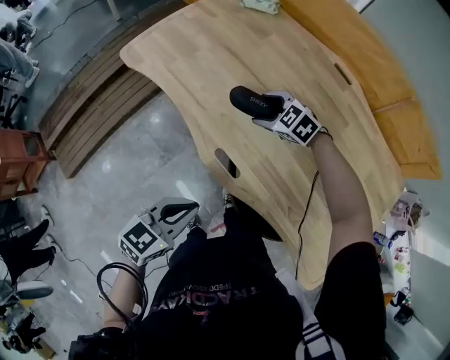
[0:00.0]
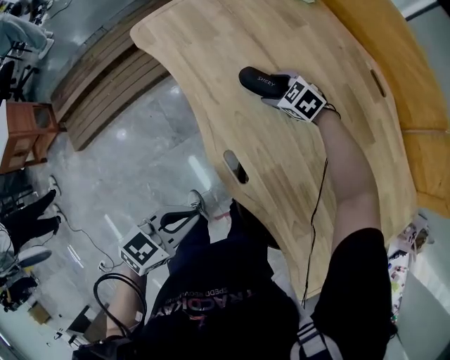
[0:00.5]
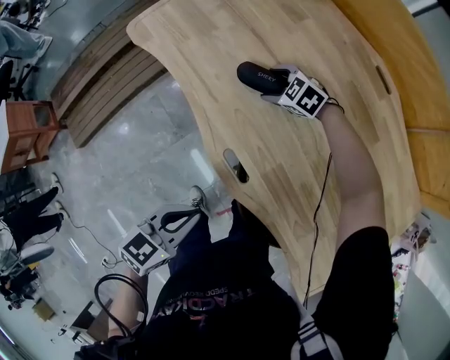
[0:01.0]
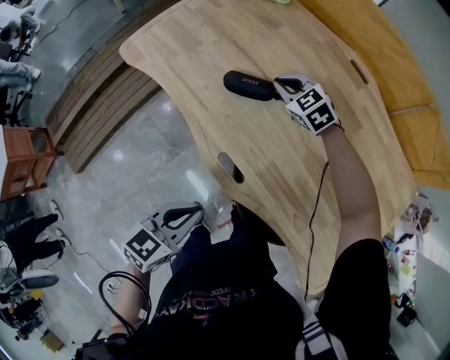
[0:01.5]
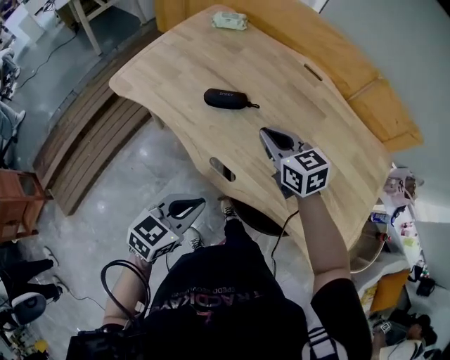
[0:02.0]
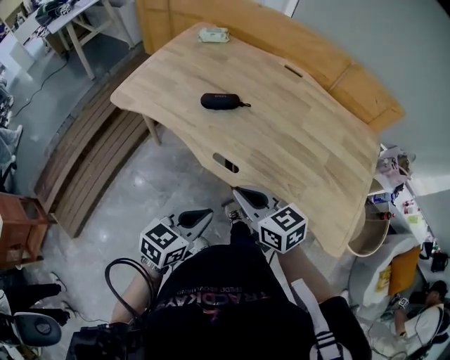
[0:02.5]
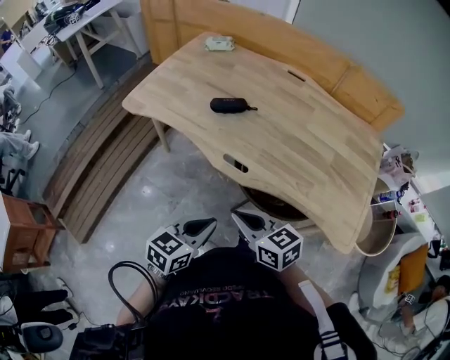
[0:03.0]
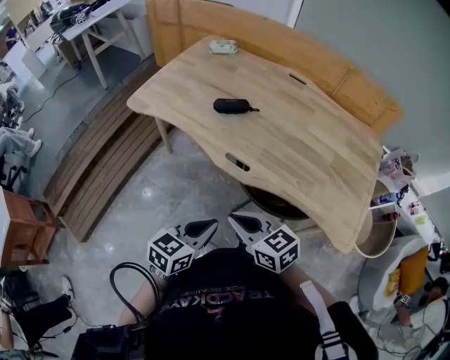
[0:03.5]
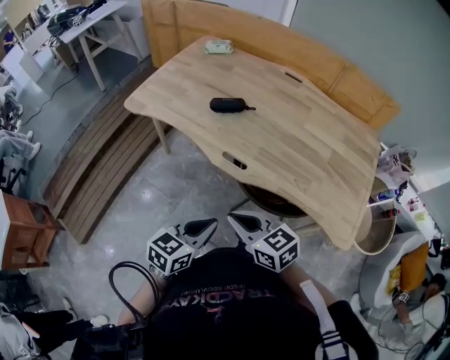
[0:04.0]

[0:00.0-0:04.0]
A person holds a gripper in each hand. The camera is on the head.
0:00.0 to 0:02.0: The right gripper goes roughly 15 cm upward, swivels about 50 degrees, and closes.
0:02.0 to 0:04.0: The left gripper heads backward, covering some 15 cm, while the right gripper shifts some 35 cm backward.

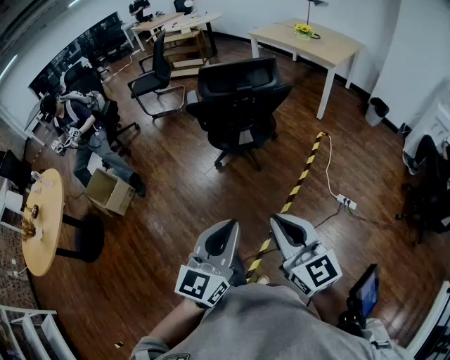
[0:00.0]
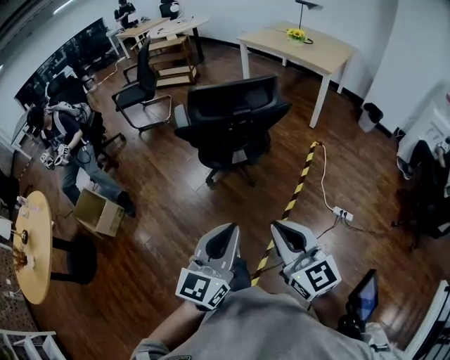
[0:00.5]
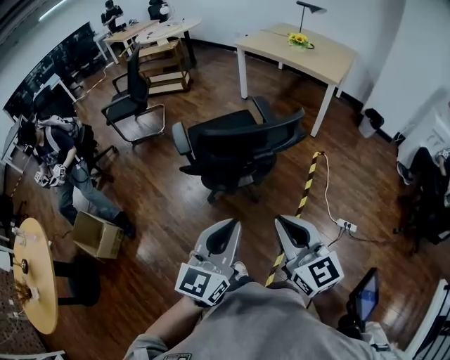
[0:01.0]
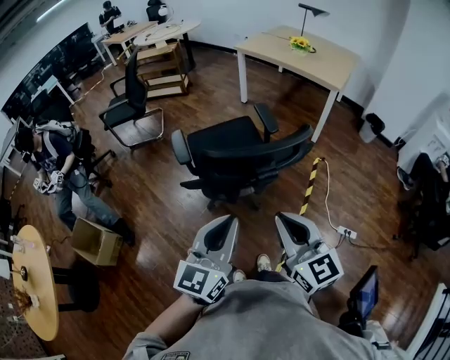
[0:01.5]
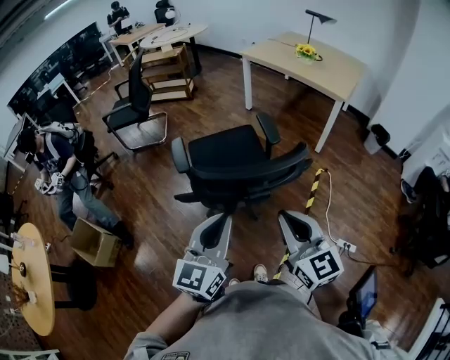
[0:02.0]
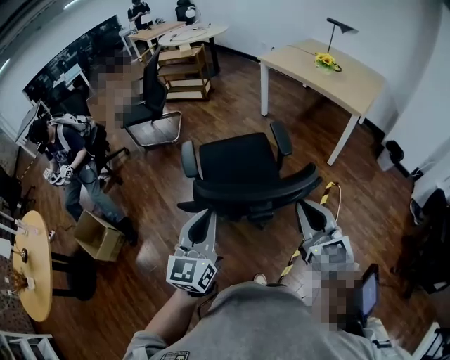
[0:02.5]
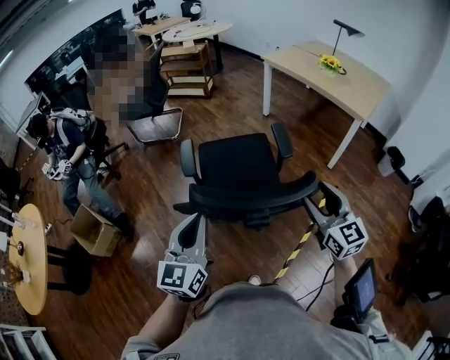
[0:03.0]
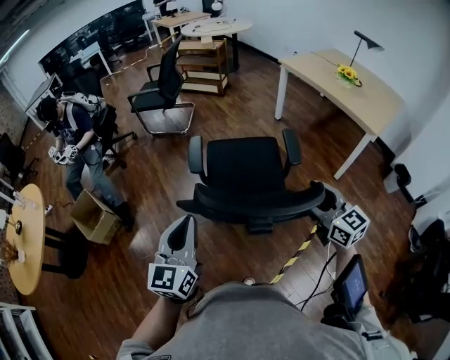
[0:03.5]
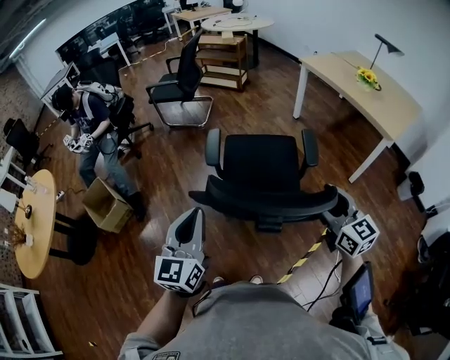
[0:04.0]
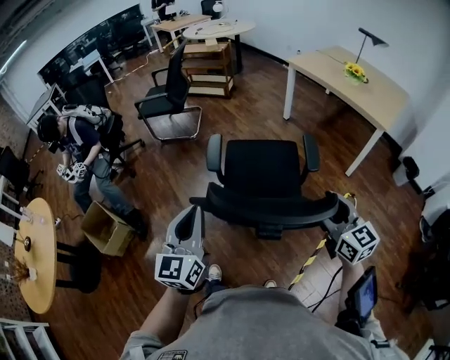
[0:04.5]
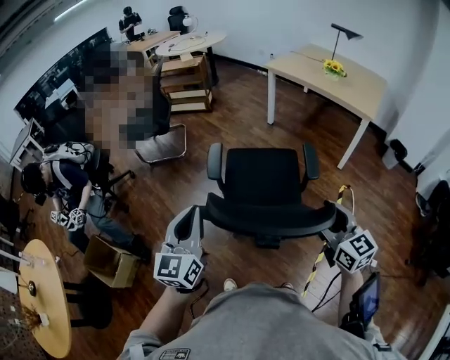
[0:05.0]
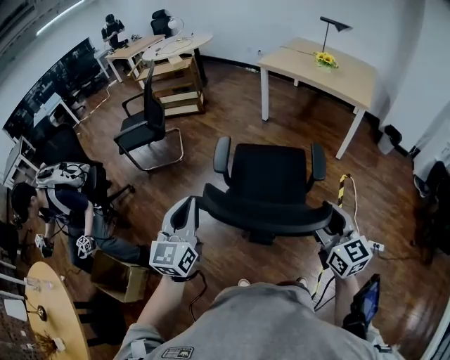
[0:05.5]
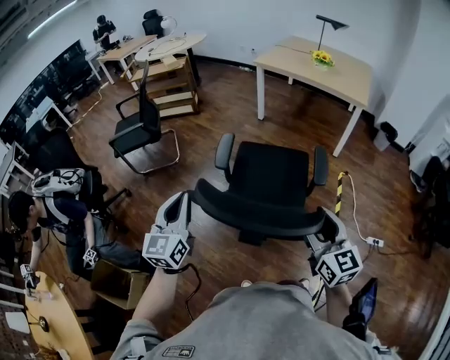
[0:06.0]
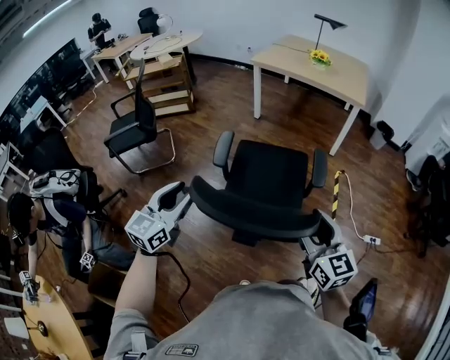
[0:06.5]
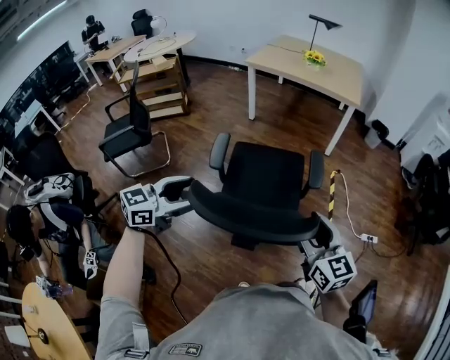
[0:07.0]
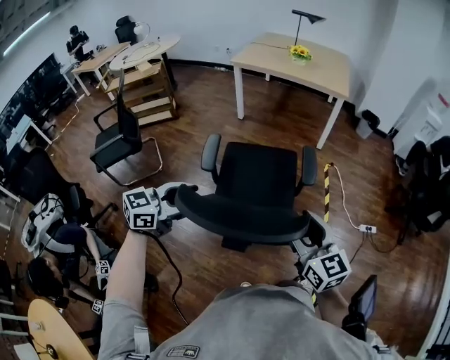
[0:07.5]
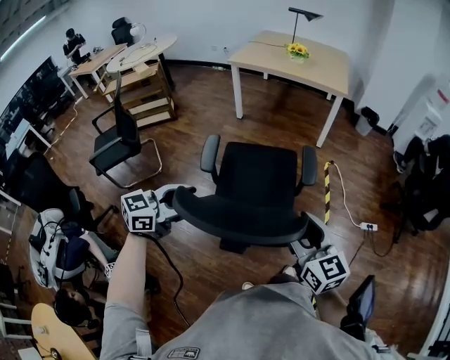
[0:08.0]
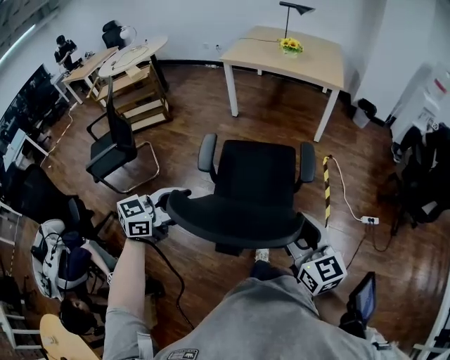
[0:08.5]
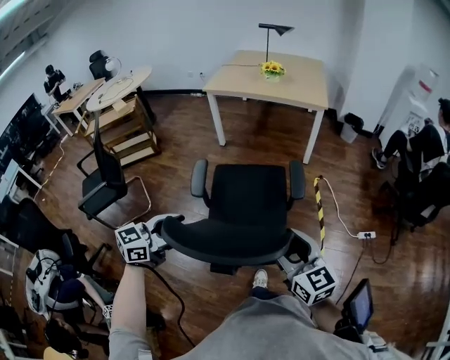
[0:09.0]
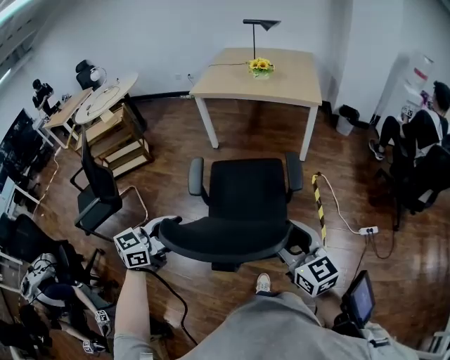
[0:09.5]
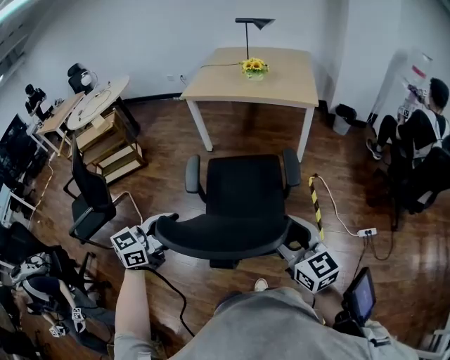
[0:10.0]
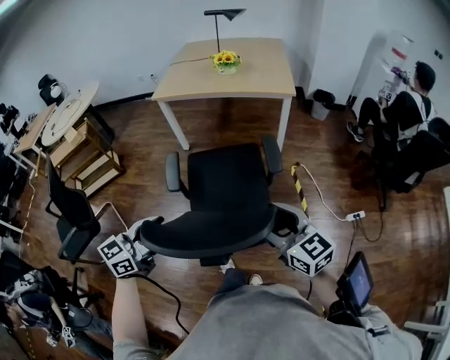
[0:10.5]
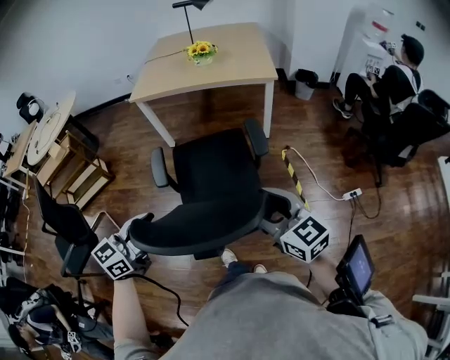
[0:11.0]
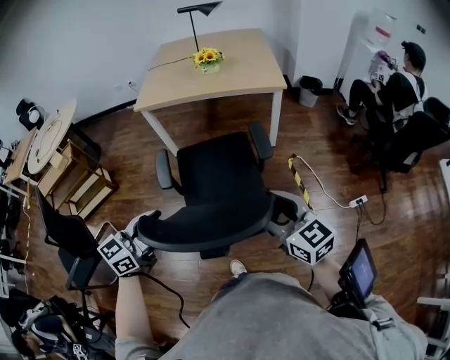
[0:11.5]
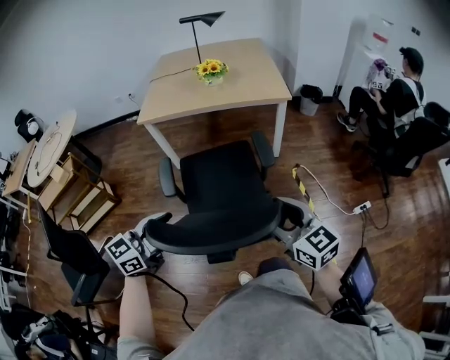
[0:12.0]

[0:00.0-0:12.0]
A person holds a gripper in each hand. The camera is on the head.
0:00.0 to 0:02.0: Both grippers travel together forward, approximately 40 cm.
0:02.0 to 0:04.0: The right gripper shifts roughly 20 cm forward and to the right, and opens. The left gripper shifts approximately 10 cm to the left and forward, and swivels about 30 degrees.
0:04.0 to 0:06.0: The right gripper ends up roughly 25 cm from where it was, and turns by approximately 40 degrees. The left gripper shifts by about 30 cm, and swivels roughly 30 degrees.
0:06.0 to 0:08.0: The left gripper moves roughly 10 cm, turns by some 60 degrees, and opens.
0:08.0 to 0:10.0: The grippers both shift forward by about 20 cm.
0:10.0 to 0:12.0: The right gripper heads forward and to the left, covering approximately 15 cm. The left gripper travels forward by some 20 cm.

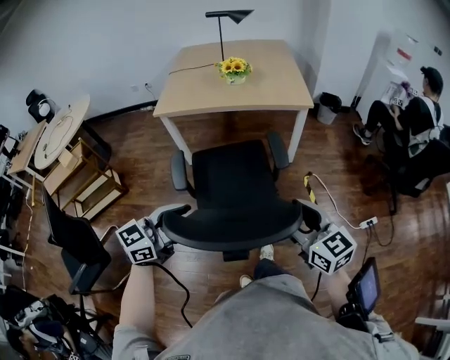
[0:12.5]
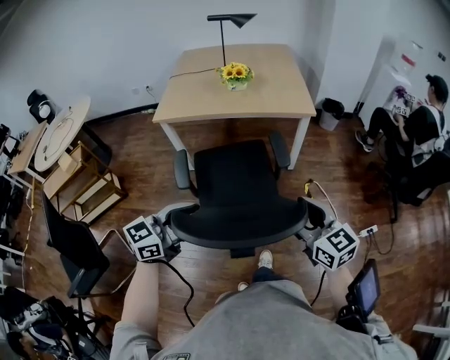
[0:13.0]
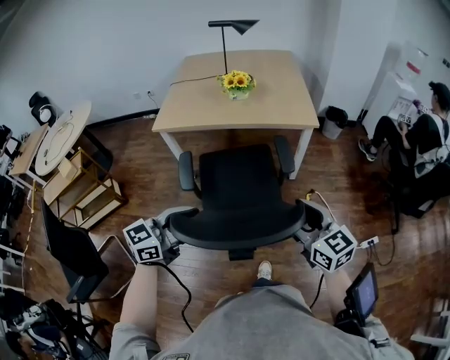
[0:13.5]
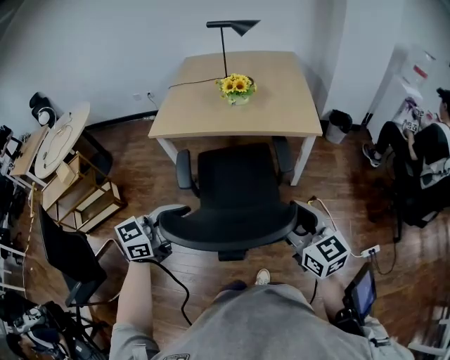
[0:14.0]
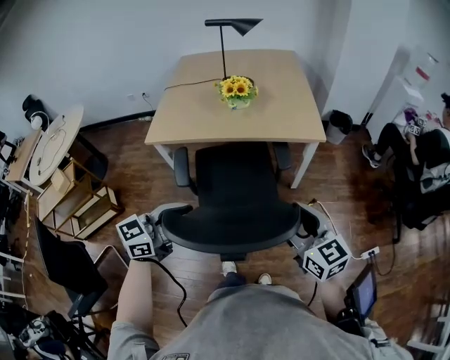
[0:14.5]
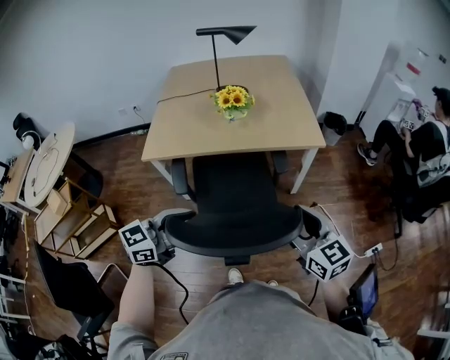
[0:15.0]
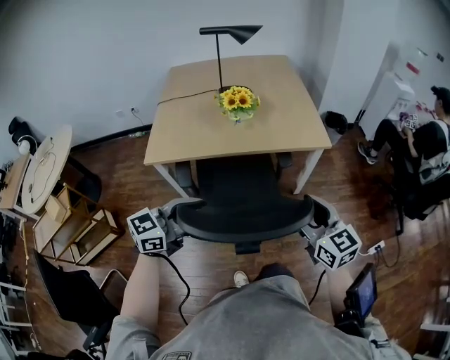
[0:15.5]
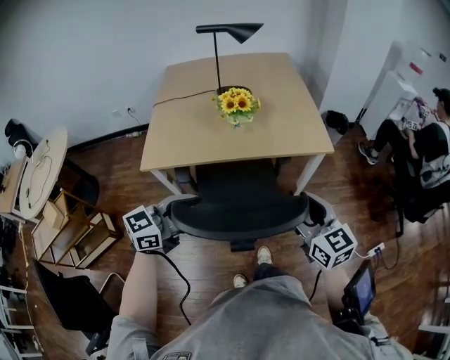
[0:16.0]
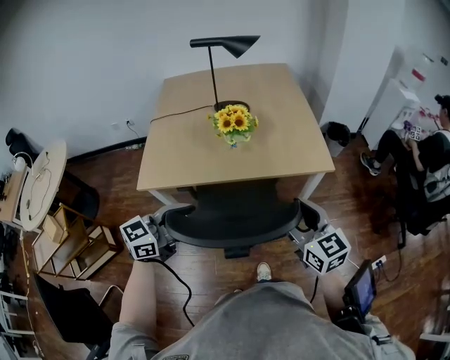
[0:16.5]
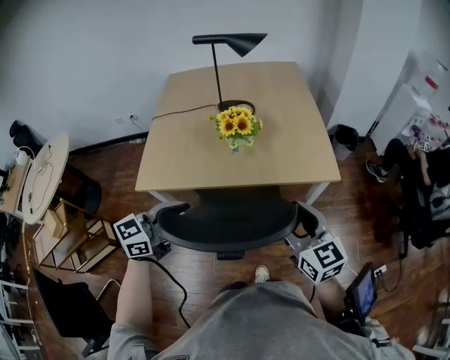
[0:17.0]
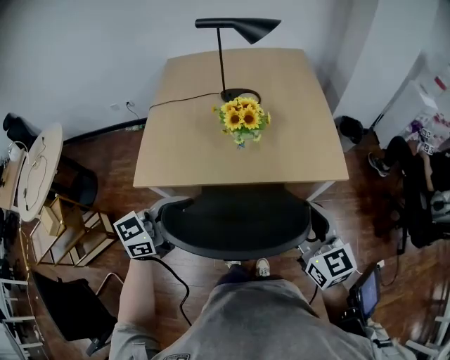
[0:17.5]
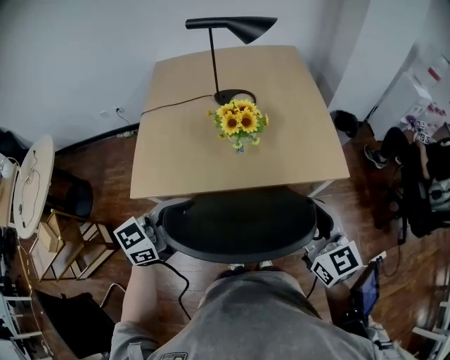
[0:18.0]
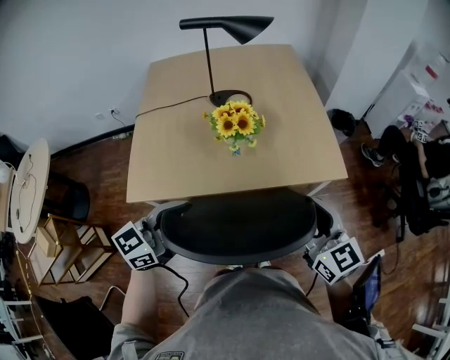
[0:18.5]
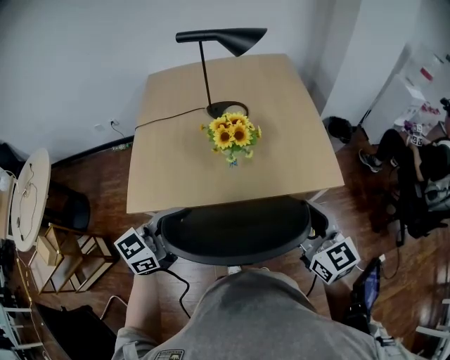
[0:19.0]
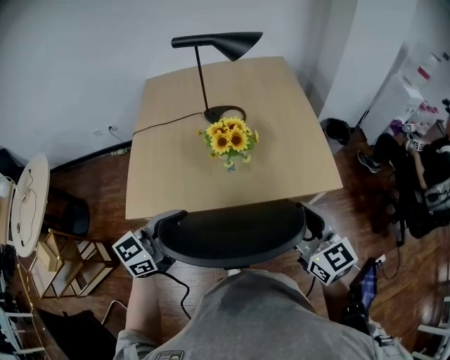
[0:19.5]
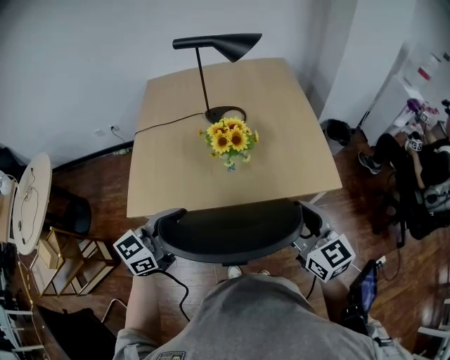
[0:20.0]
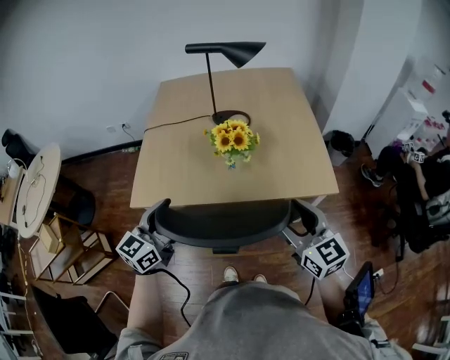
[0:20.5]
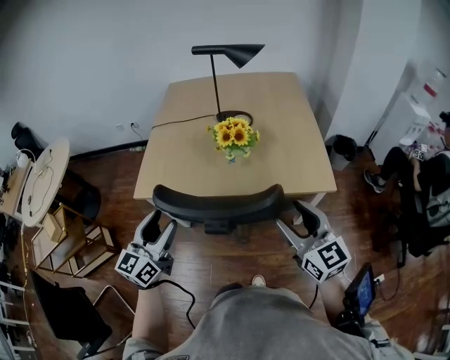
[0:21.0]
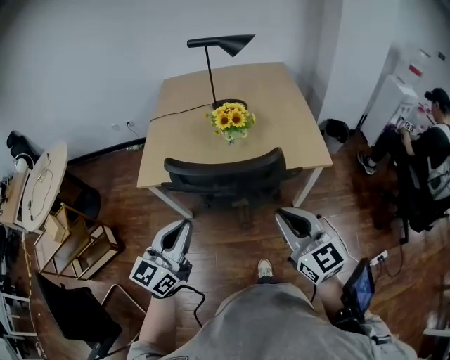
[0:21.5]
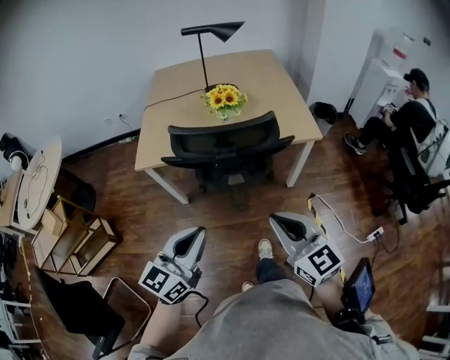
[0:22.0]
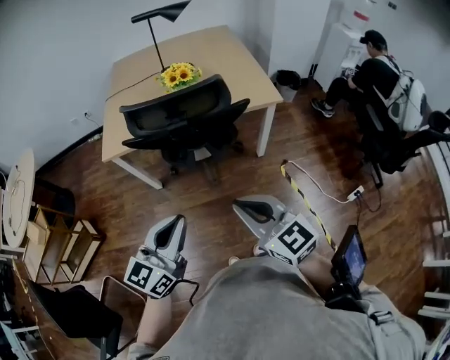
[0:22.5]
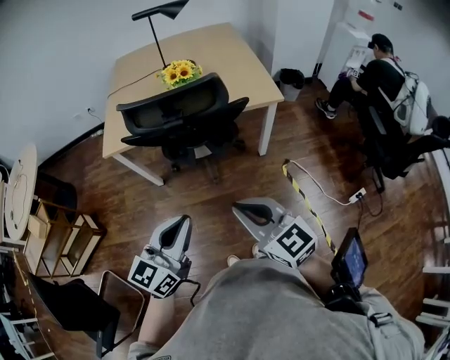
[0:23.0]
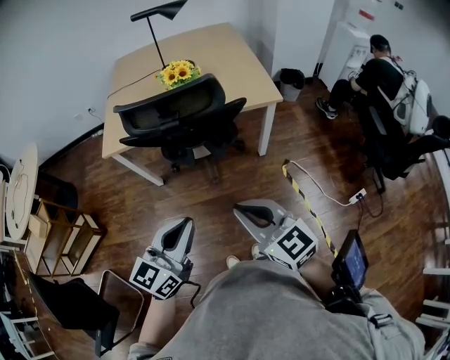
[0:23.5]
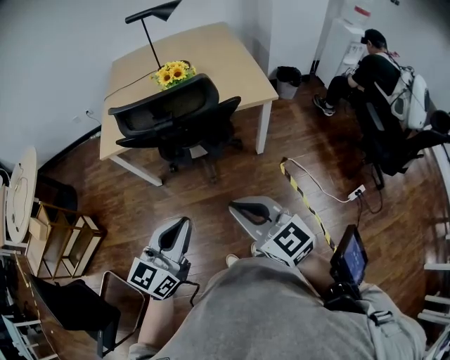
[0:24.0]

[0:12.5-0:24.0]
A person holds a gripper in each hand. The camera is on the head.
0:12.5 to 0:14.5: The two grippers go some 25 cm forward.
0:14.5 to 0:16.5: Both grippers move forward and to the left, some 20 cm.
0:16.5 to 0:18.5: The left gripper moves forward and to the left, some 10 cm; the right gripper heads forward, covering approximately 10 cm.
0:18.5 to 0:20.0: There are only small adjustments of the grippers.
0:20.0 to 0:22.0: The two grippers go some 30 cm backward. The right gripper closes its fingers. Meanwhile the left gripper closes.
0:22.0 to 0:24.0: The right gripper moves backward, some 5 cm, while the left gripper moves to the right and backward, approximately 10 cm.
